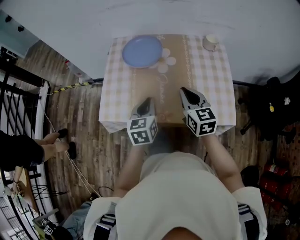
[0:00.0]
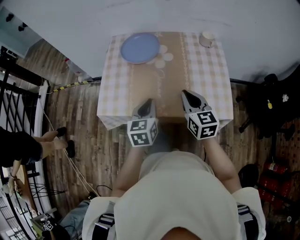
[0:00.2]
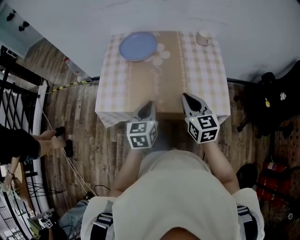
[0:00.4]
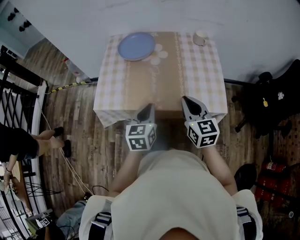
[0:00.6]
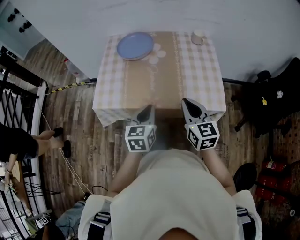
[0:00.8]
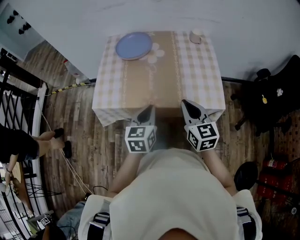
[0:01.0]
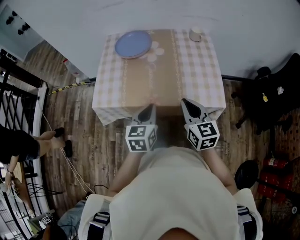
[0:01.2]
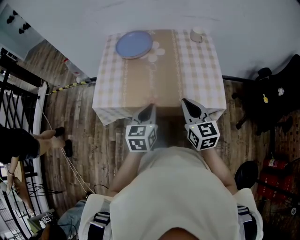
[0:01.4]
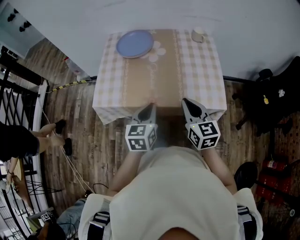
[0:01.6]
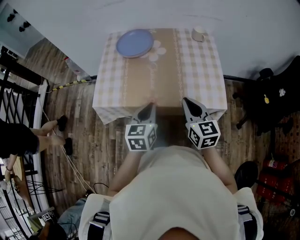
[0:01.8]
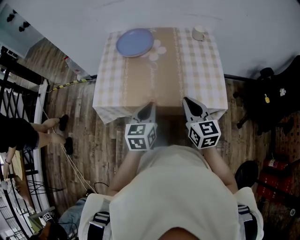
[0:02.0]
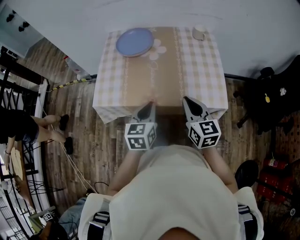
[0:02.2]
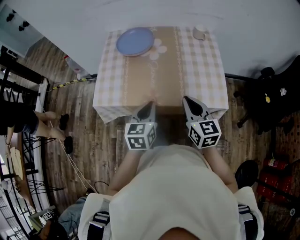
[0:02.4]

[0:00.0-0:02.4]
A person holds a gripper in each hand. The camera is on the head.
0:00.0 to 0:01.2: The right gripper goes some 15 cm backward; the left gripper moves backward and to the right, some 15 cm.
0:01.2 to 0:02.4: There are only small adjustments of the grippers.

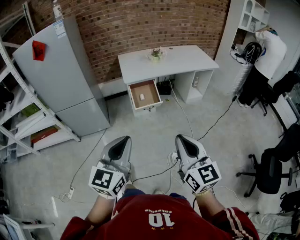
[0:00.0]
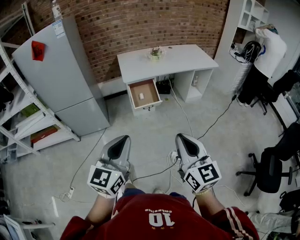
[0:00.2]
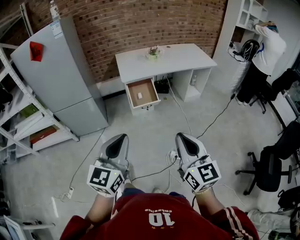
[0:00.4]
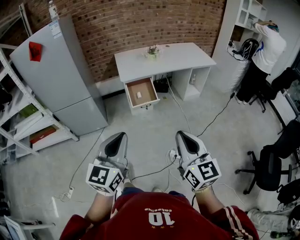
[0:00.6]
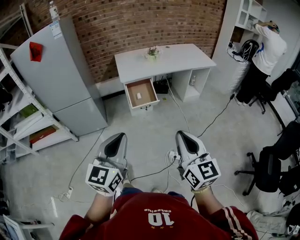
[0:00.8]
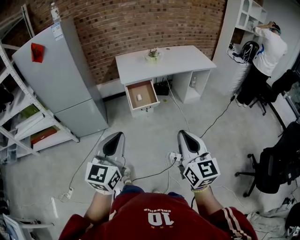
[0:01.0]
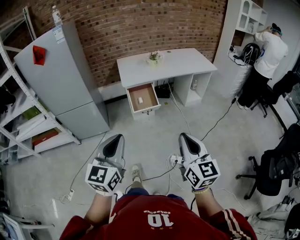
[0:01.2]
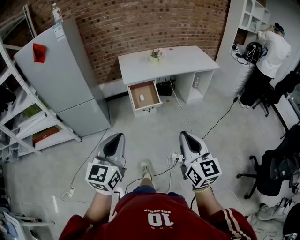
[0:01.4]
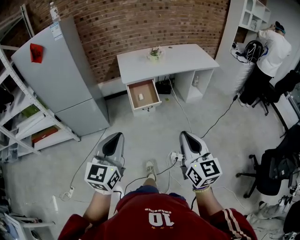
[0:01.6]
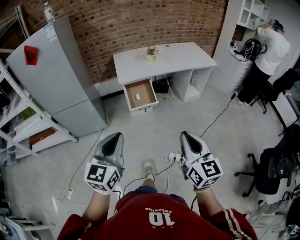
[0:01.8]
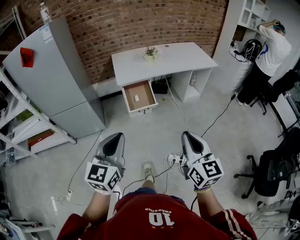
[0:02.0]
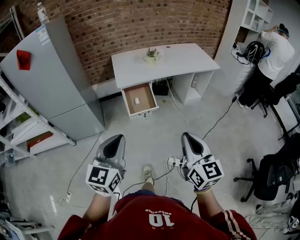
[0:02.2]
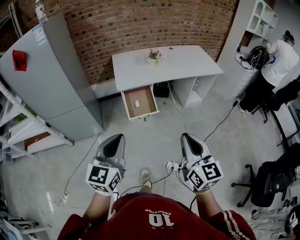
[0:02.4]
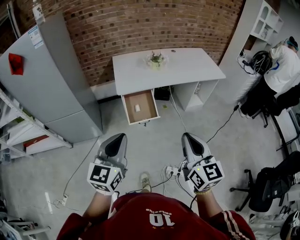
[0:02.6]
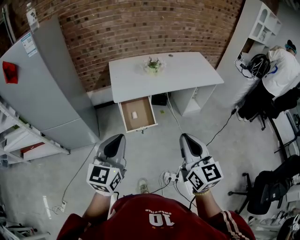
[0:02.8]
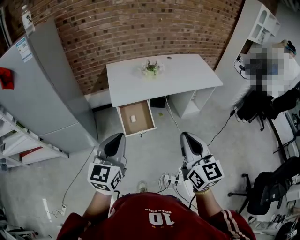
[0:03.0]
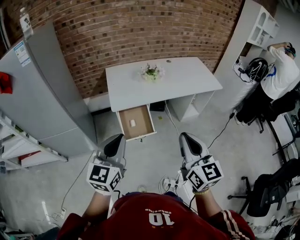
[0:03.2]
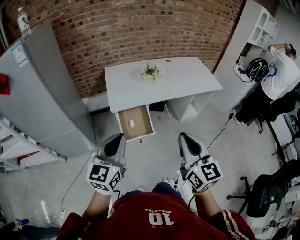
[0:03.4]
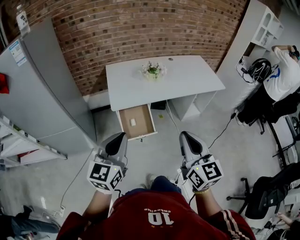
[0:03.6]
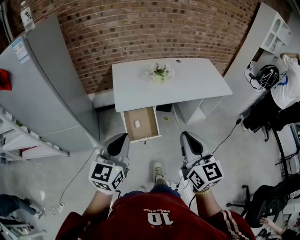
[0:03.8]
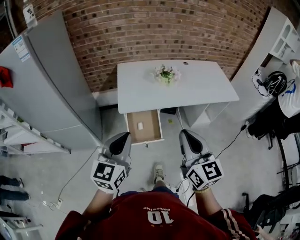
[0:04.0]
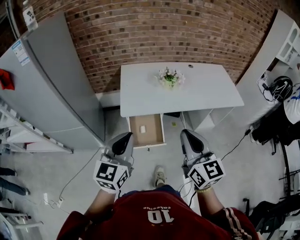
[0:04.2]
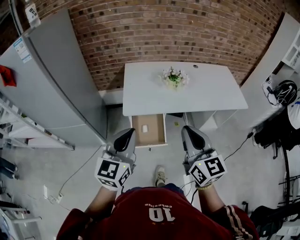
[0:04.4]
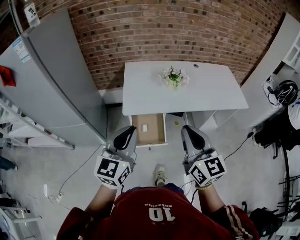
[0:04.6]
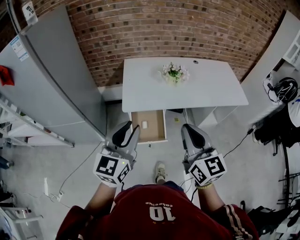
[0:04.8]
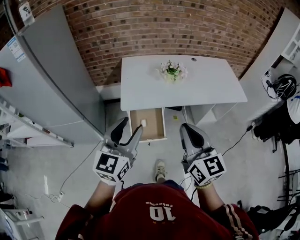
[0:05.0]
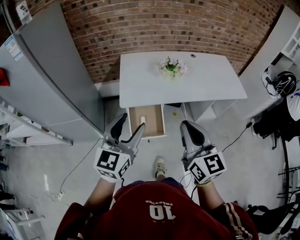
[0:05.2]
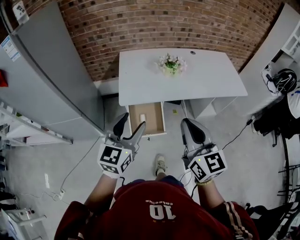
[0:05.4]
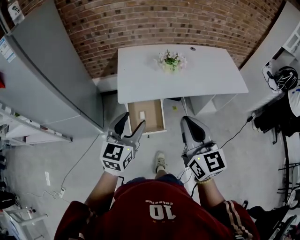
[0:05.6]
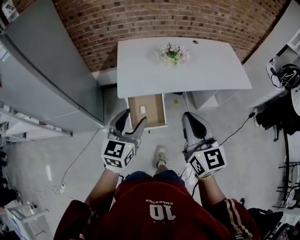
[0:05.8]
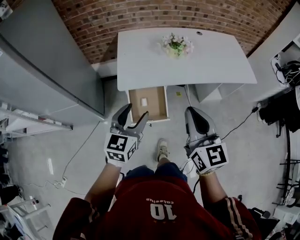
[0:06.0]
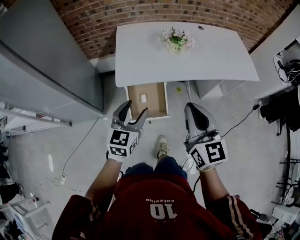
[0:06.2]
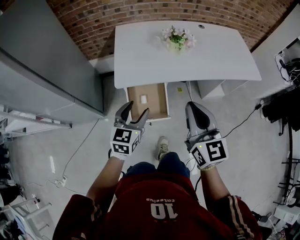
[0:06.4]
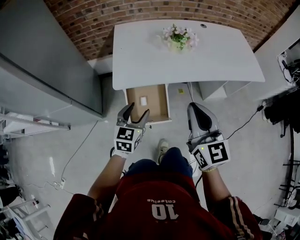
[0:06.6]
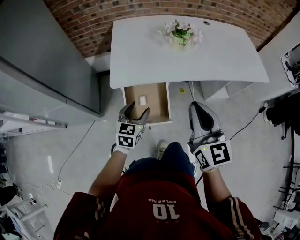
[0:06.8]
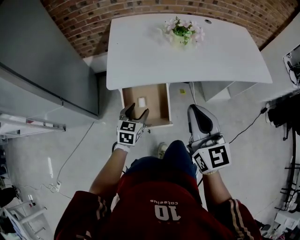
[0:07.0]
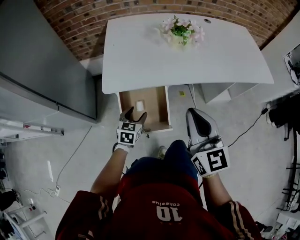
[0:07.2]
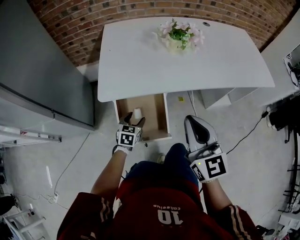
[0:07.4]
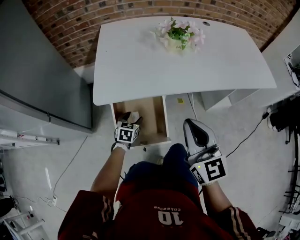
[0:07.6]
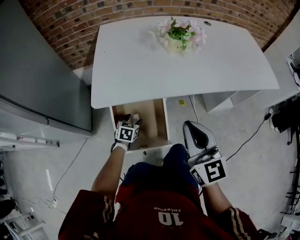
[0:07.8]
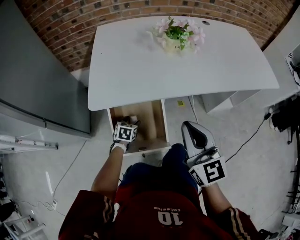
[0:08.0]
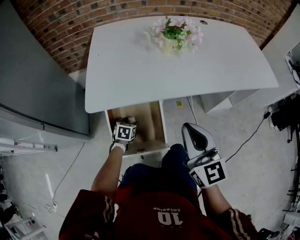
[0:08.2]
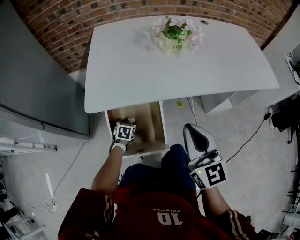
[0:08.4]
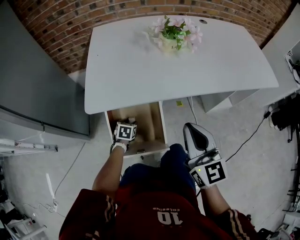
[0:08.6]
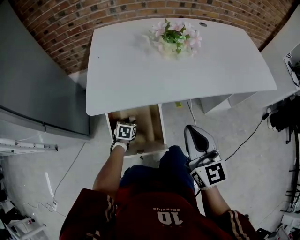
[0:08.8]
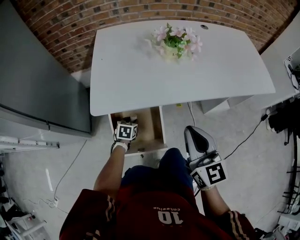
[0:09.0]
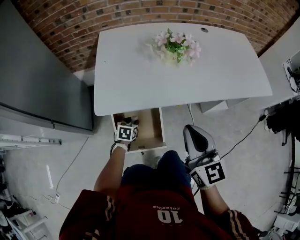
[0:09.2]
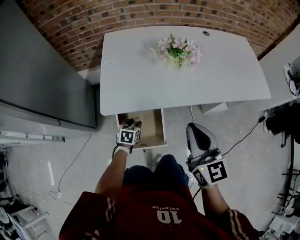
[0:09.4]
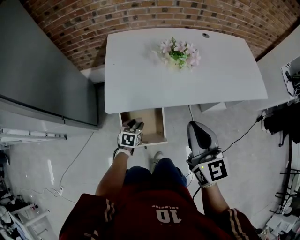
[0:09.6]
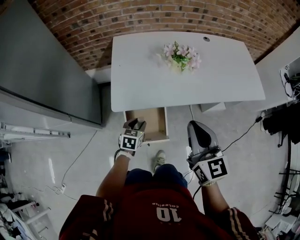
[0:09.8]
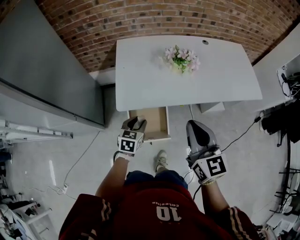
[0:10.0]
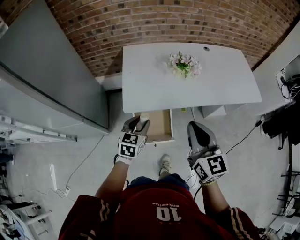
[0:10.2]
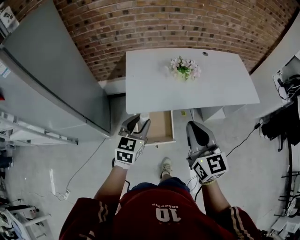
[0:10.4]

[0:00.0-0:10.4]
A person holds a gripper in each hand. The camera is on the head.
0:00.0 to 0:01.4: The right gripper ends up about 5 cm from where it was.
0:01.4 to 0:03.0: The grippers both shift forward by some 30 cm.
0:03.0 to 0:04.4: Both grippers move forward, about 20 cm.
0:04.4 to 0:06.0: The right gripper moves downward, some 5 cm, while the left gripper heads downward and forward, covering approximately 15 cm, and opens up.
0:06.0 to 0:07.4: The left gripper is displaced downward by roughly 40 cm, and swivels about 20 degrees. The right gripper goes approximately 25 cm downward and forward.
0:07.4 to 0:09.0: The right gripper moves some 5 cm, while the left gripper heads downward and forward, covering some 10 cm, and closes its fingers.
0:09.0 to 0:10.4: The right gripper shifts roughly 25 cm upward; the left gripper heads upward, covering some 50 cm, and tips its fingers upward by about 30 degrees.

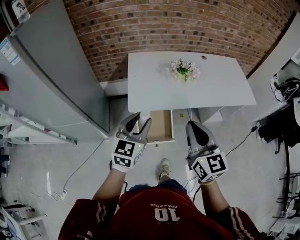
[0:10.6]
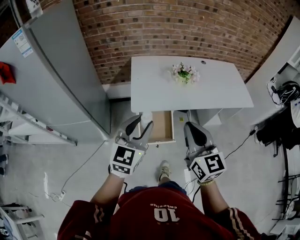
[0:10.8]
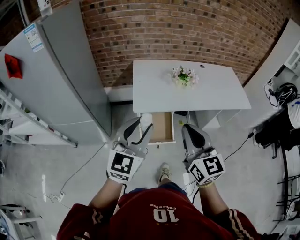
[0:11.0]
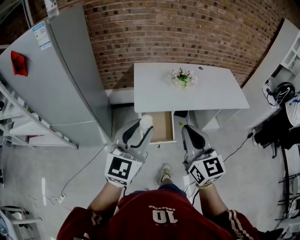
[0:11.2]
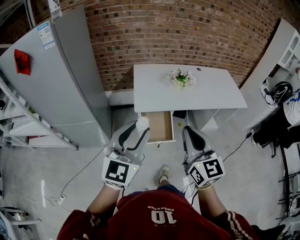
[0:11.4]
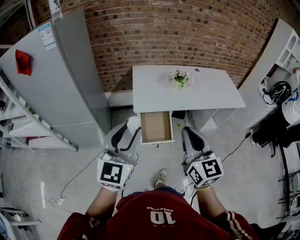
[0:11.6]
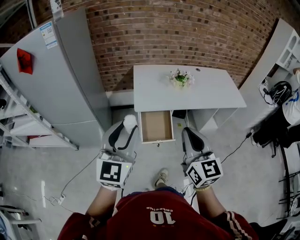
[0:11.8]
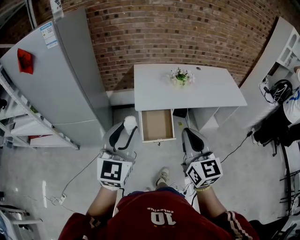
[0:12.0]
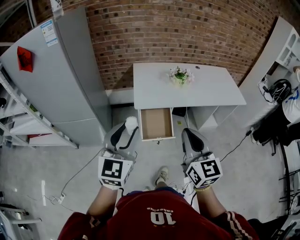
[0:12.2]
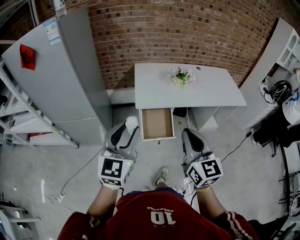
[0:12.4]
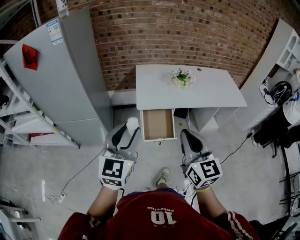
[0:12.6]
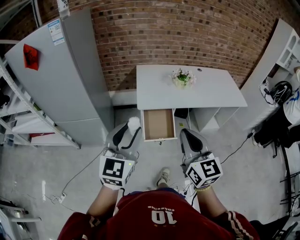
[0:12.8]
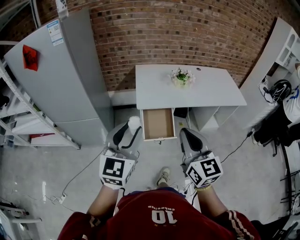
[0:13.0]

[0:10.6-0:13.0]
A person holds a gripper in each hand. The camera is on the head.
0:10.6 to 0:11.8: The left gripper moves backward, upward and to the left, some 25 cm; the right gripper goes approximately 15 cm backward.
0:11.8 to 0:13.0: The grippers make only small movements.

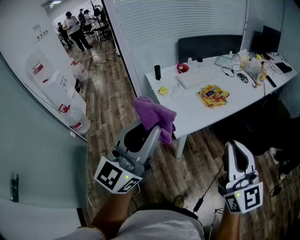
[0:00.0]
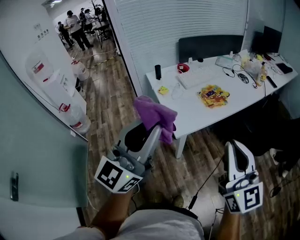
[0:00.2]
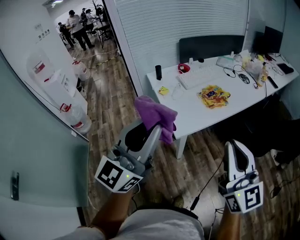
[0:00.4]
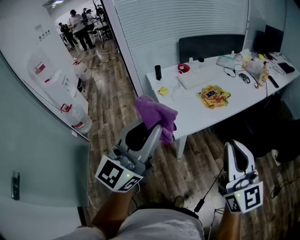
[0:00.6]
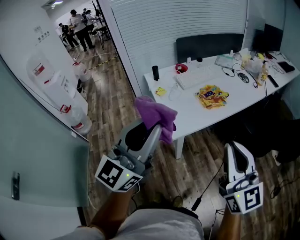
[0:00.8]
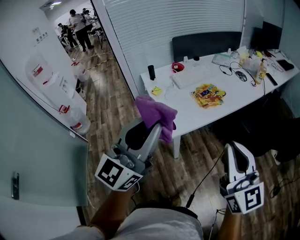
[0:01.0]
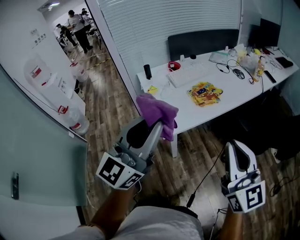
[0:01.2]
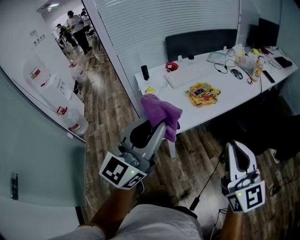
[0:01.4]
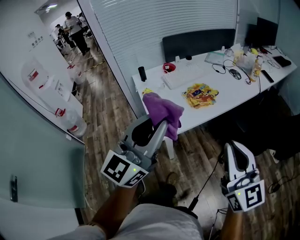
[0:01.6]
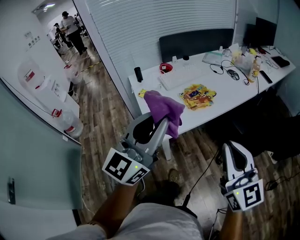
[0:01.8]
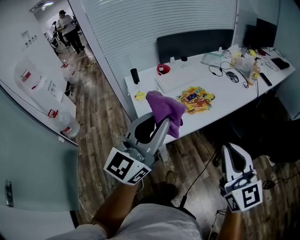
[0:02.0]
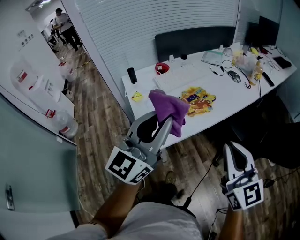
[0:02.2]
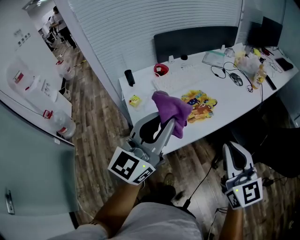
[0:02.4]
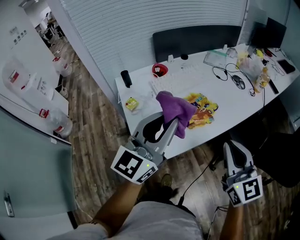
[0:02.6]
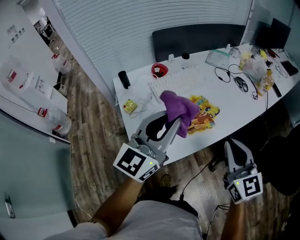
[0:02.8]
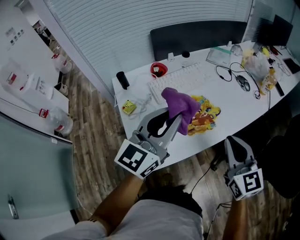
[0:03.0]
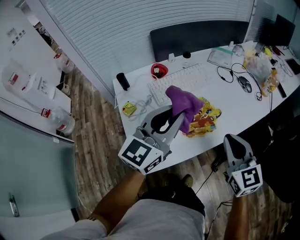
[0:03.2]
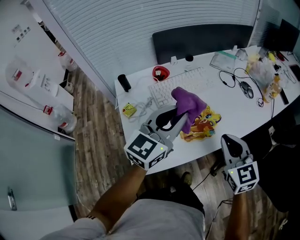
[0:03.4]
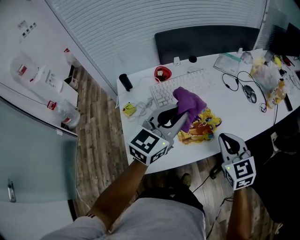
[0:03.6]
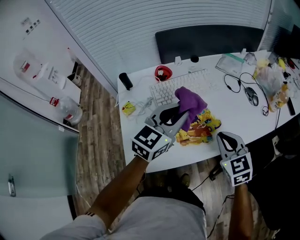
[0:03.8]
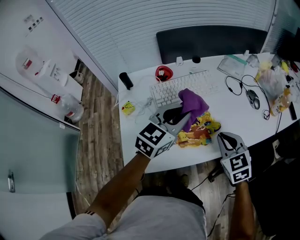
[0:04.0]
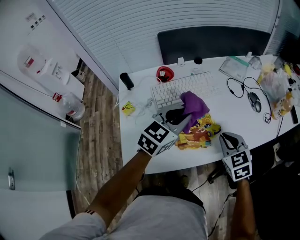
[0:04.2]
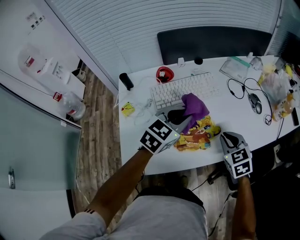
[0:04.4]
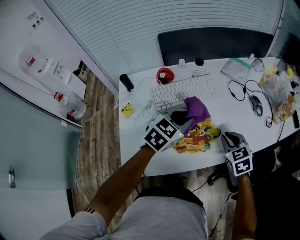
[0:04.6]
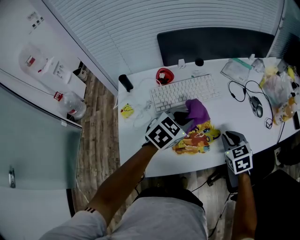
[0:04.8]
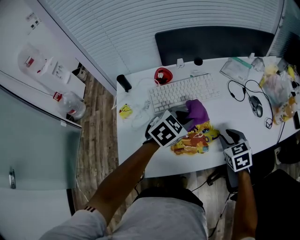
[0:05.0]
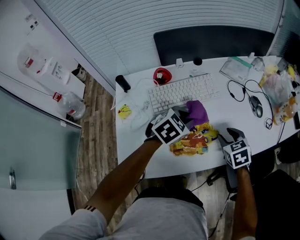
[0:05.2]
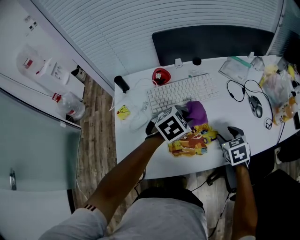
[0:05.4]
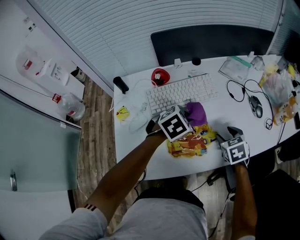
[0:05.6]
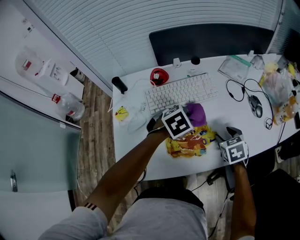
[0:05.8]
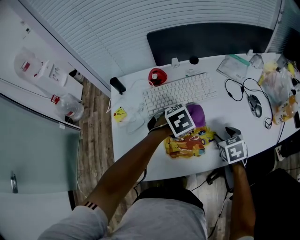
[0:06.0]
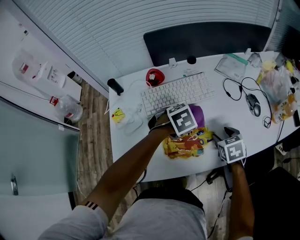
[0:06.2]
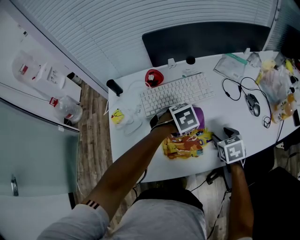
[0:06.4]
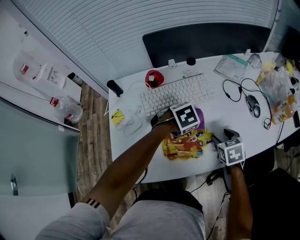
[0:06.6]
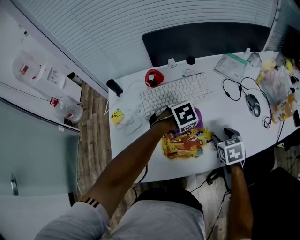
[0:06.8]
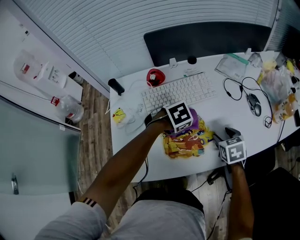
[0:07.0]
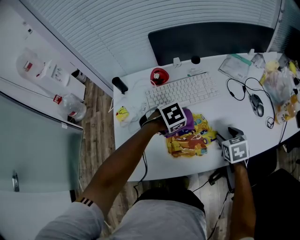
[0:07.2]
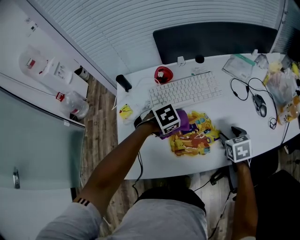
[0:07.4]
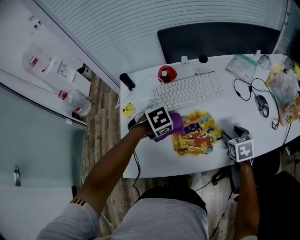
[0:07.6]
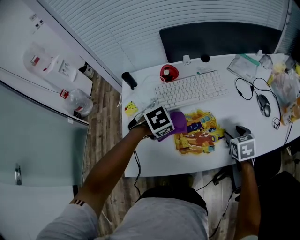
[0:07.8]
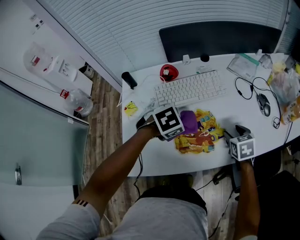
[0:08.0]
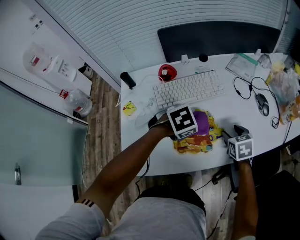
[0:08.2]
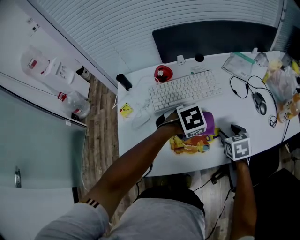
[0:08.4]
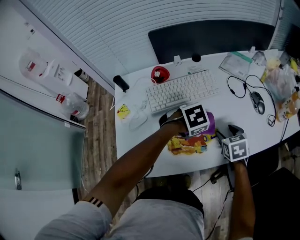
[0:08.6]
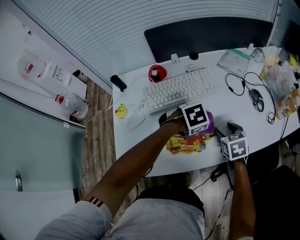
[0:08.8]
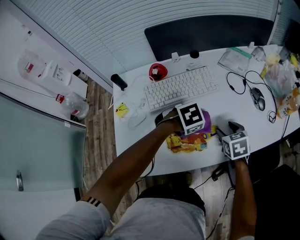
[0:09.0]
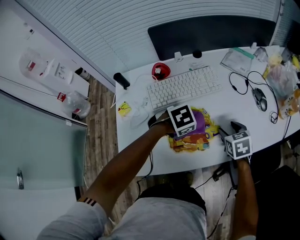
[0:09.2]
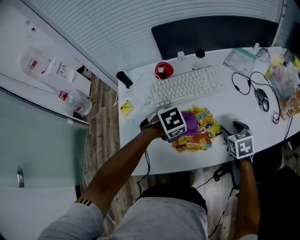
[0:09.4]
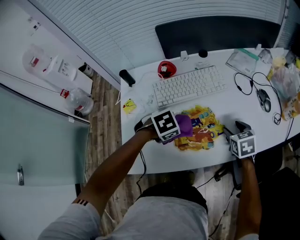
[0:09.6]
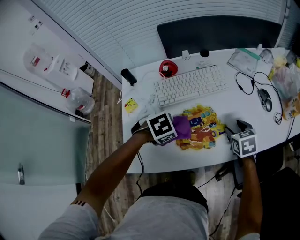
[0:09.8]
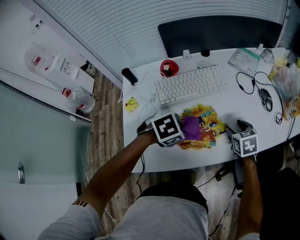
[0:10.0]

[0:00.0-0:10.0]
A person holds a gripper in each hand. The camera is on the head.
0:00.0 to 0:01.4: The right gripper moves to the right, some 10 cm, while the left gripper heads to the right and forward, covering approximately 10 cm.
0:01.4 to 0:02.8: Both grippers travel together forward, some 25 cm.
0:02.8 to 0:04.2: The left gripper moves forward, downward and to the right, roughly 20 cm, and changes its angle by approximately 30 degrees. The right gripper moves forward and downward, about 20 cm, and rotates roughly 30 degrees.
0:04.2 to 0:05.8: The two grippers go approximately 15 cm downward and forward. The right gripper opens its fingers; the left gripper tips its fingers downward by roughly 40 degrees.
0:05.8 to 0:07.2: The left gripper changes place by roughly 5 cm.
0:07.2 to 0:08.6: The left gripper ends up some 10 cm from where it was.
0:08.6 to 0:10.0: The left gripper travels backward and to the left by roughly 10 cm.
